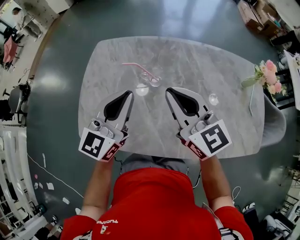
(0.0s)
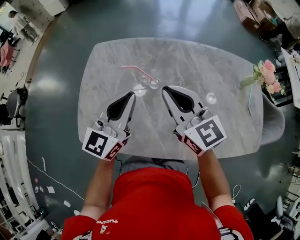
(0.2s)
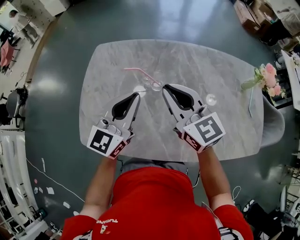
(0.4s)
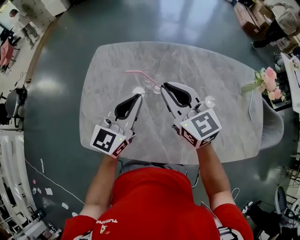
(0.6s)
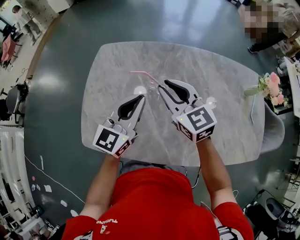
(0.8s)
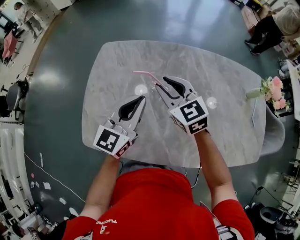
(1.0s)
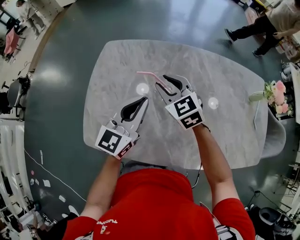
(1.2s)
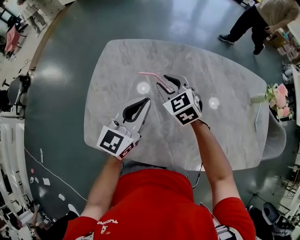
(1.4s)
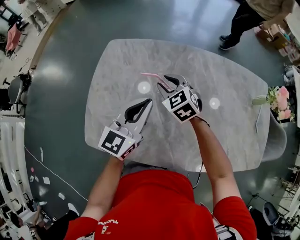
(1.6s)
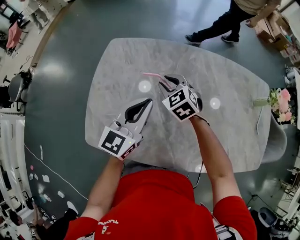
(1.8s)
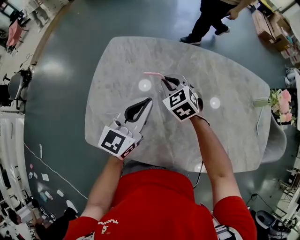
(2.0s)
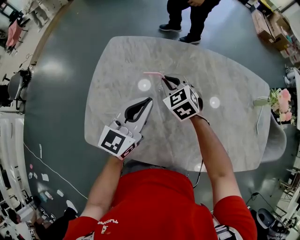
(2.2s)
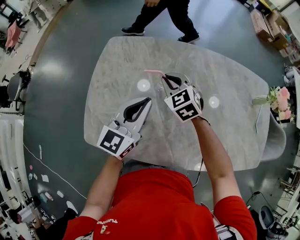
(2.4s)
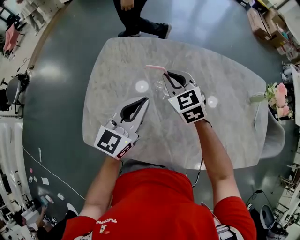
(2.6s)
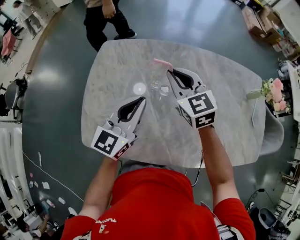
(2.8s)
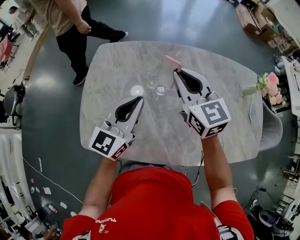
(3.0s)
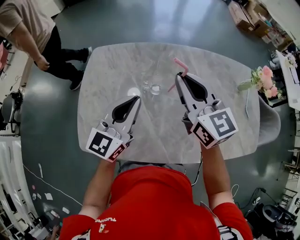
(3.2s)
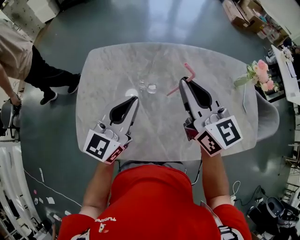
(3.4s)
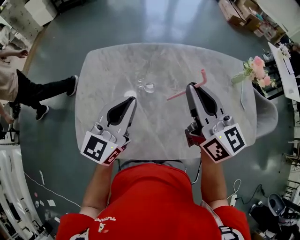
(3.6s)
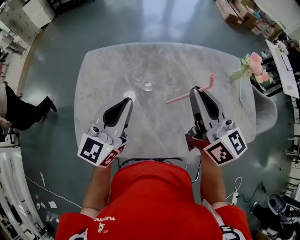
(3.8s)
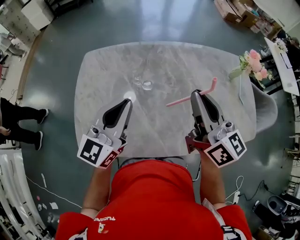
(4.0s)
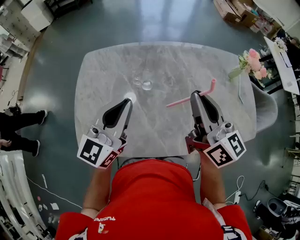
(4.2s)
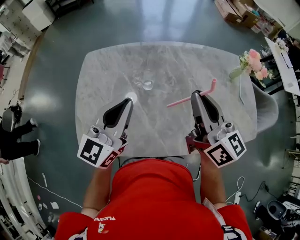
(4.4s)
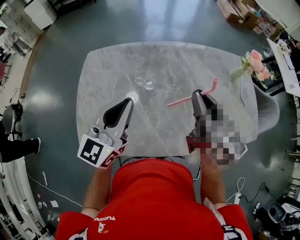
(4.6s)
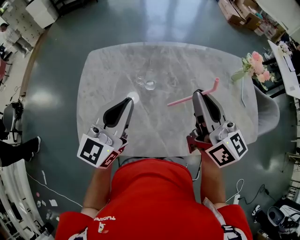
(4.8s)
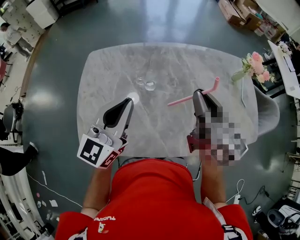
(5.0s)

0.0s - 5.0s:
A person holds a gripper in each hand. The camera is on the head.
0.0s - 1.6s: The left gripper moves downward and forward, about 10 cm. Meanwhile the right gripper goes approximately 25 cm downward, forward and to the left, tips its fingers downward by approximately 30 degrees, and opens up.
1.6s - 3.4s: The left gripper is displaced upward by about 5 cm; the right gripper shifts some 25 cm upward, to the right and backward, tilts its fingers some 40 degrees upward, and closes.
3.4s - 5.0s: The right gripper is displaced backward and to the right by some 10 cm.

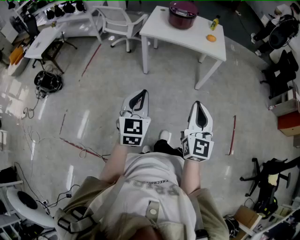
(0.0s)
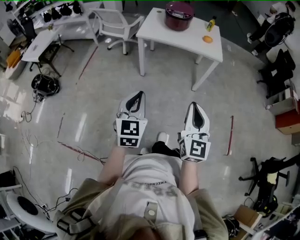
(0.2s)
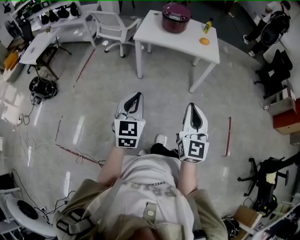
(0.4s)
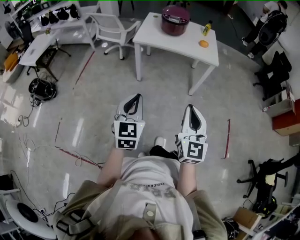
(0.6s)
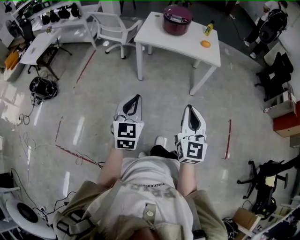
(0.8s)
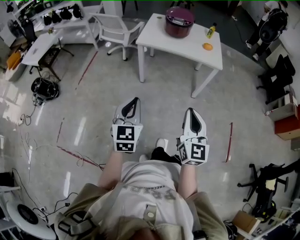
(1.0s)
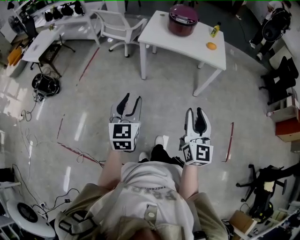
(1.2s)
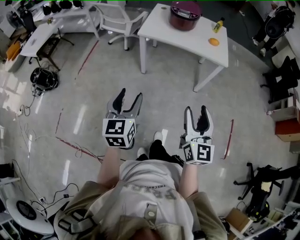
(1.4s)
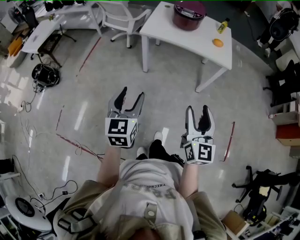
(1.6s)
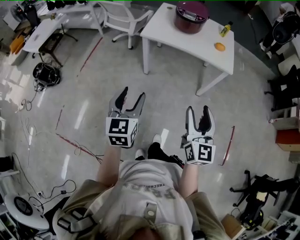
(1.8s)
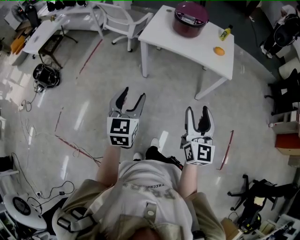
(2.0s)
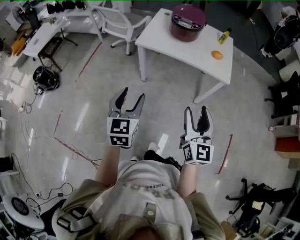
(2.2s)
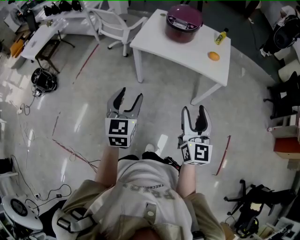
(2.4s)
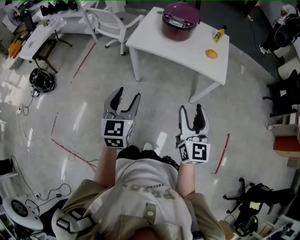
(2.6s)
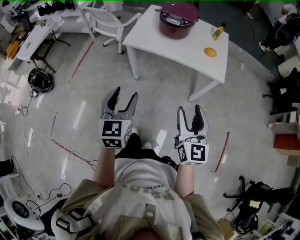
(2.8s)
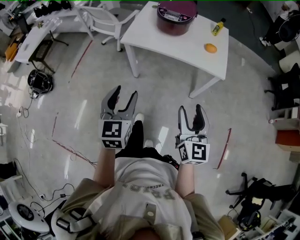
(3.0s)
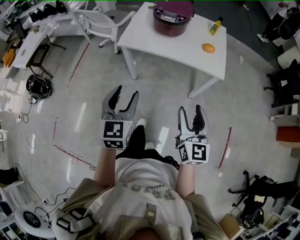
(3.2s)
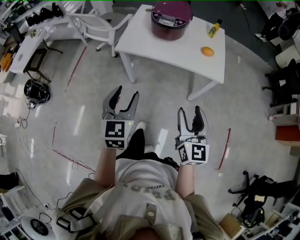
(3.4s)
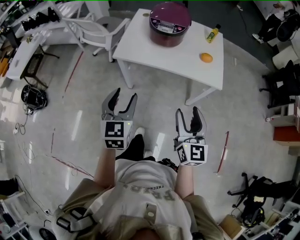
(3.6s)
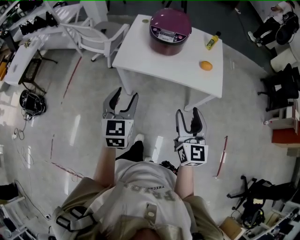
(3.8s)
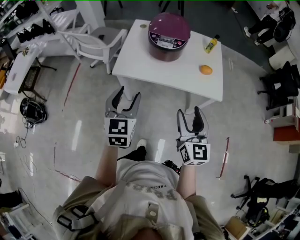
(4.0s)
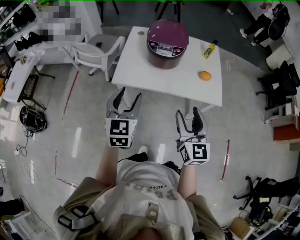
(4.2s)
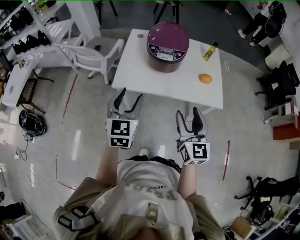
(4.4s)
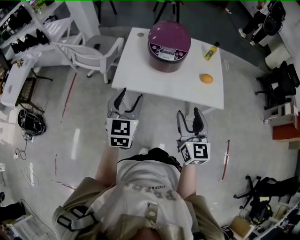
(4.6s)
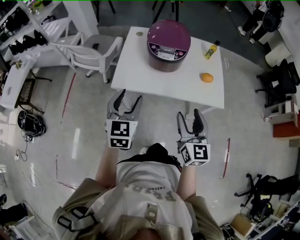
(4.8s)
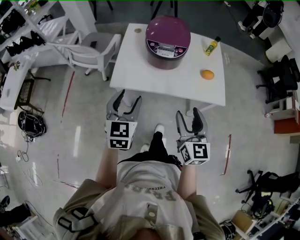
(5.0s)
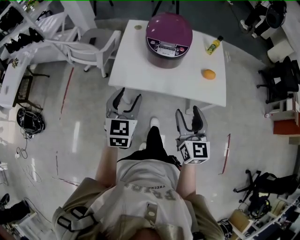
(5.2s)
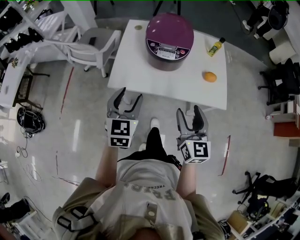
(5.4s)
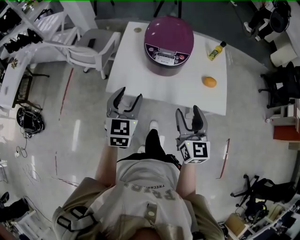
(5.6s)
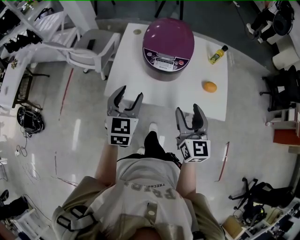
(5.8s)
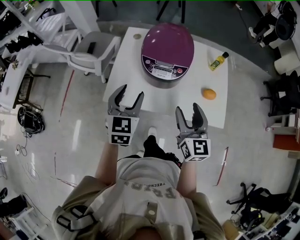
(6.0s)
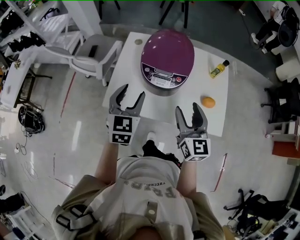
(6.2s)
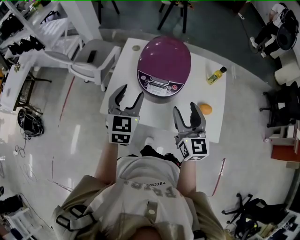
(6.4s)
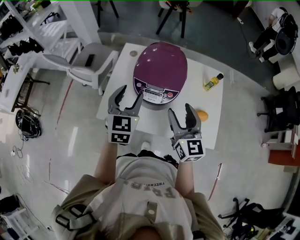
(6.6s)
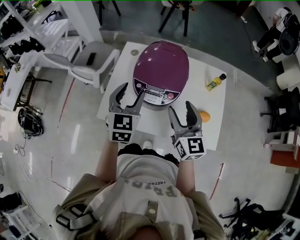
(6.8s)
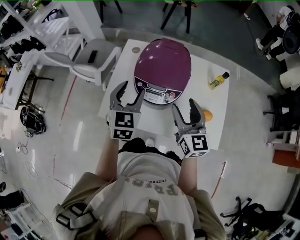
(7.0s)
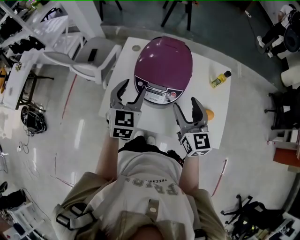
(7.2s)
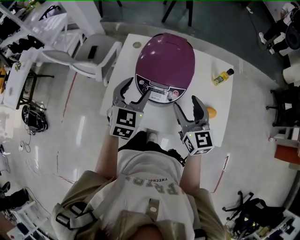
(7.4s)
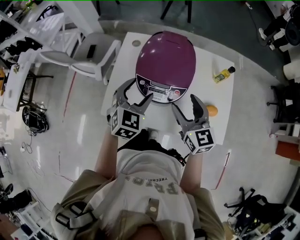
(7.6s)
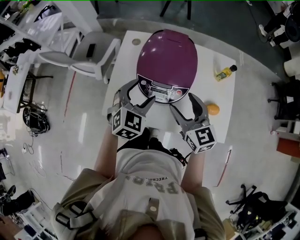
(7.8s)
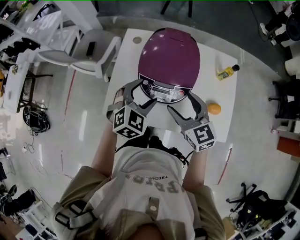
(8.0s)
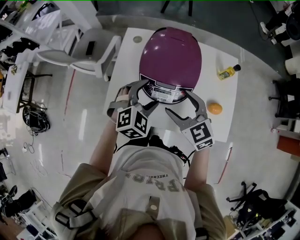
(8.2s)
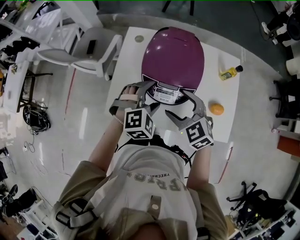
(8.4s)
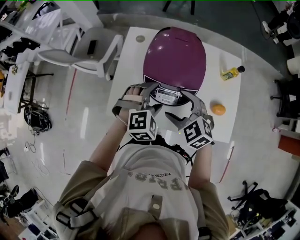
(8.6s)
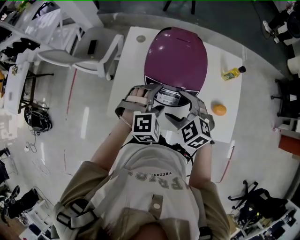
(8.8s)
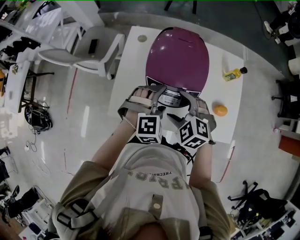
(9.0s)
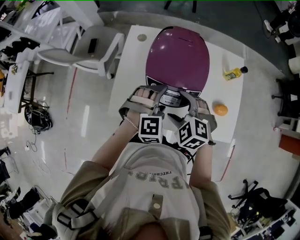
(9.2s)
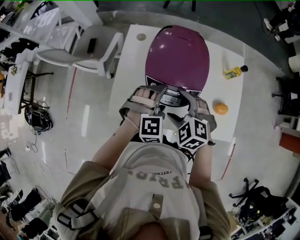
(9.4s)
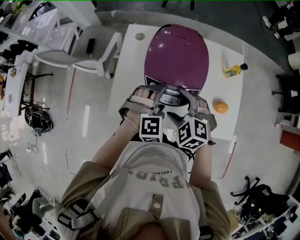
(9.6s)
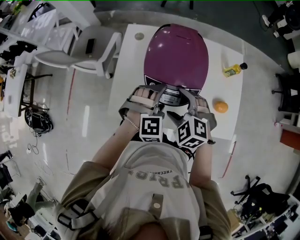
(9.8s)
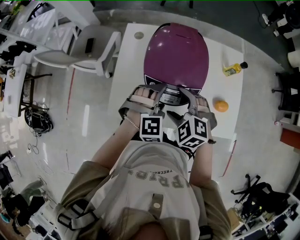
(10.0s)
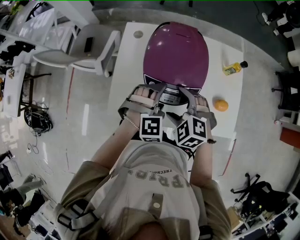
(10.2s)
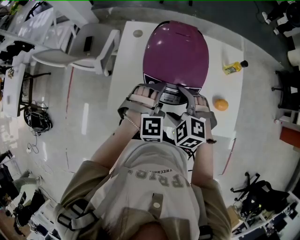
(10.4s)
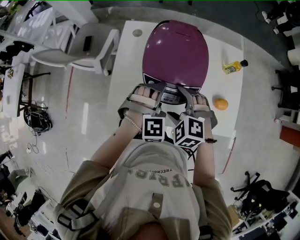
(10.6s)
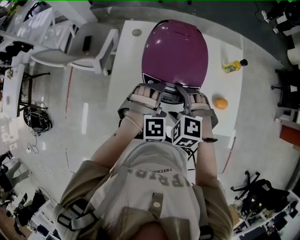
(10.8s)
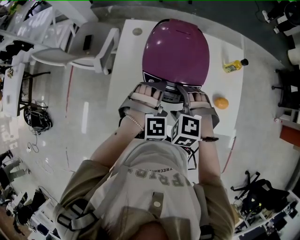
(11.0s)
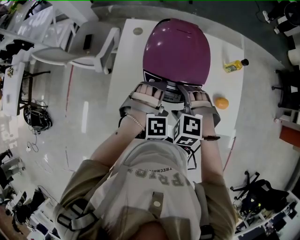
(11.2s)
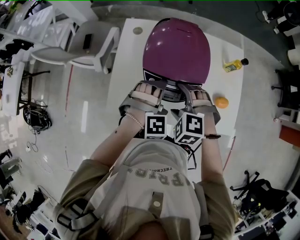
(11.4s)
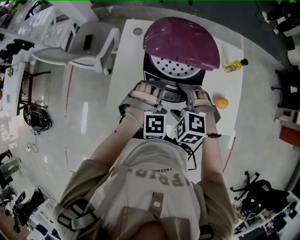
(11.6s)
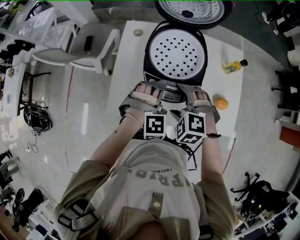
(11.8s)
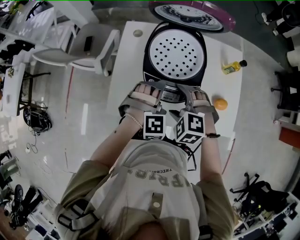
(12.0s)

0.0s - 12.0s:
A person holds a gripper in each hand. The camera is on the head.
0.0s - 1.6s: The grippers both shift forward by approximately 10 cm. The left gripper opens its fingers, while the right gripper opens up.
1.6s - 3.0s: The grippers both shift forward and to the right by roughly 20 cm.
3.0s - 4.4s: The two grippers go approximately 25 cm forward.
4.4s - 6.0s: Both grippers move forward, some 20 cm.
6.0s - 7.6s: The right gripper shifts some 15 cm forward; the left gripper goes approximately 15 cm forward and to the right.
7.6s - 9.0s: The right gripper goes approximately 10 cm downward and to the left, and points its fingers some 40 degrees further downward, while the left gripper is displaced downward by about 5 cm, and twists about 40 degrees clockwise, seen from behind.
9.0s - 10.4s: There are only small adjustments of the grippers.
10.4s - 12.0s: The grippers make only small movements.

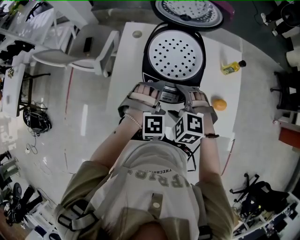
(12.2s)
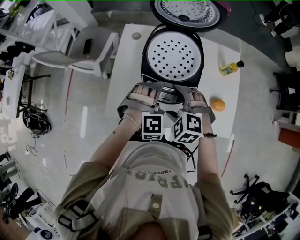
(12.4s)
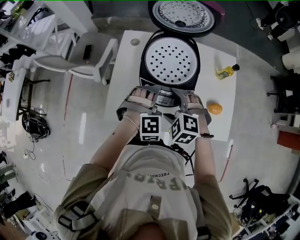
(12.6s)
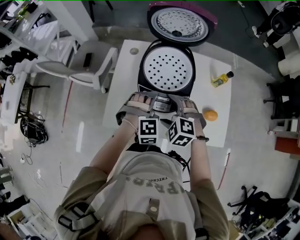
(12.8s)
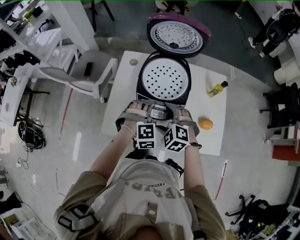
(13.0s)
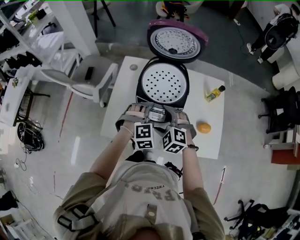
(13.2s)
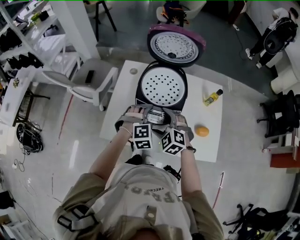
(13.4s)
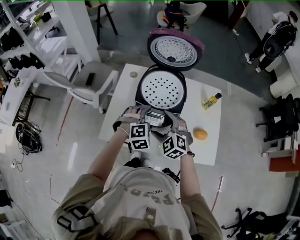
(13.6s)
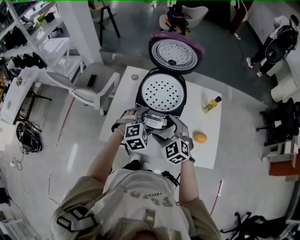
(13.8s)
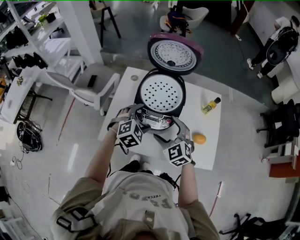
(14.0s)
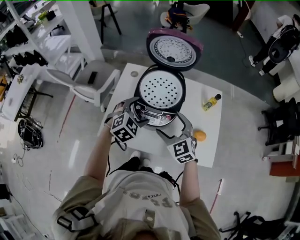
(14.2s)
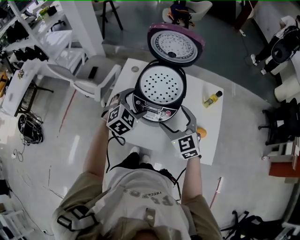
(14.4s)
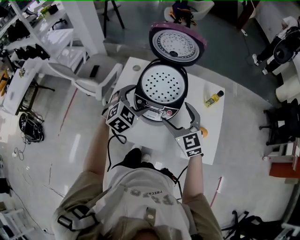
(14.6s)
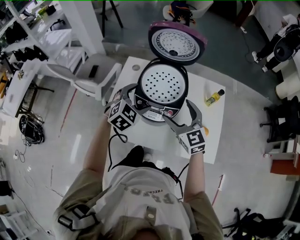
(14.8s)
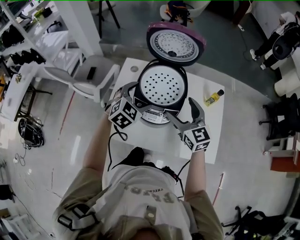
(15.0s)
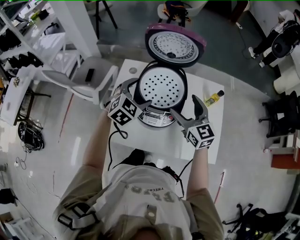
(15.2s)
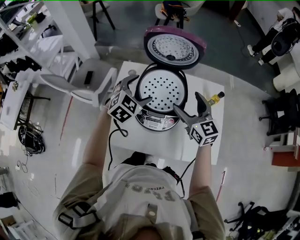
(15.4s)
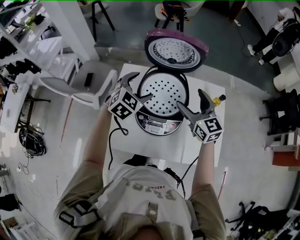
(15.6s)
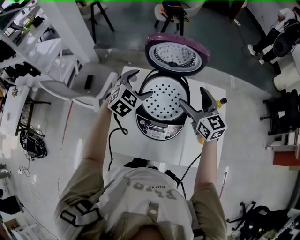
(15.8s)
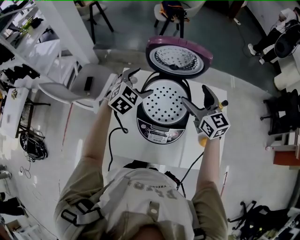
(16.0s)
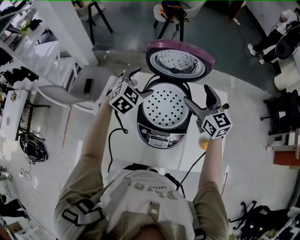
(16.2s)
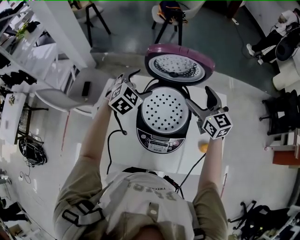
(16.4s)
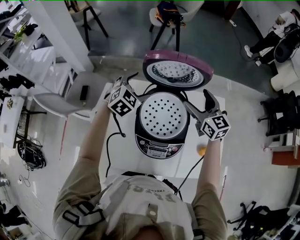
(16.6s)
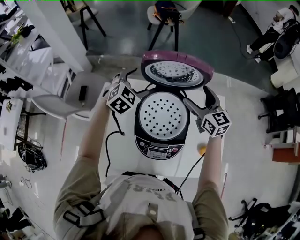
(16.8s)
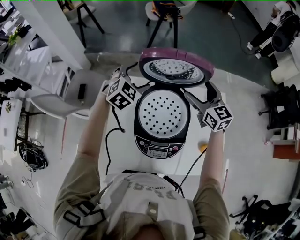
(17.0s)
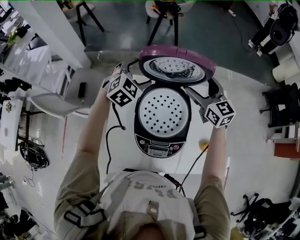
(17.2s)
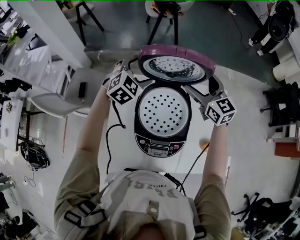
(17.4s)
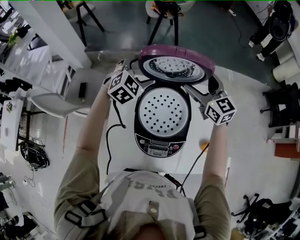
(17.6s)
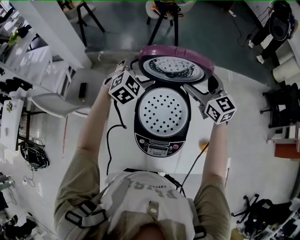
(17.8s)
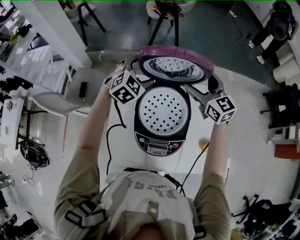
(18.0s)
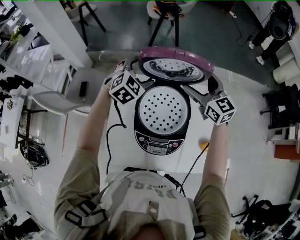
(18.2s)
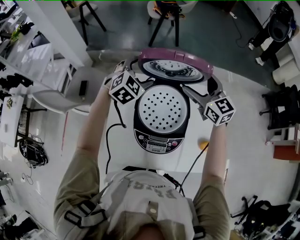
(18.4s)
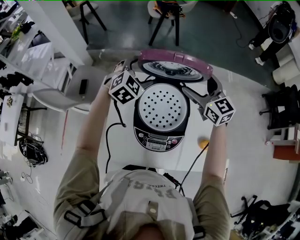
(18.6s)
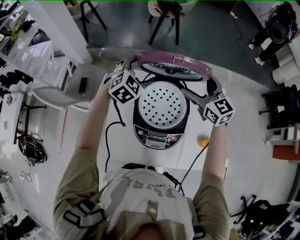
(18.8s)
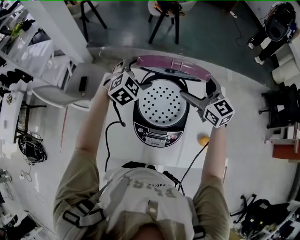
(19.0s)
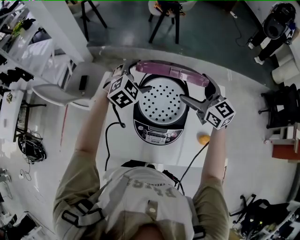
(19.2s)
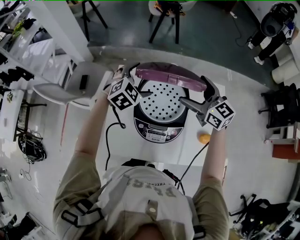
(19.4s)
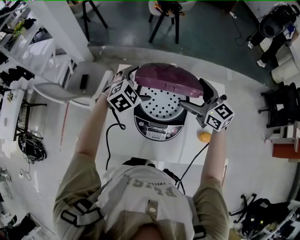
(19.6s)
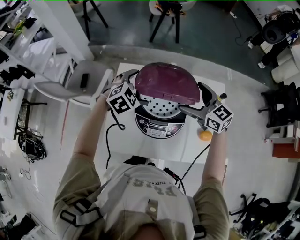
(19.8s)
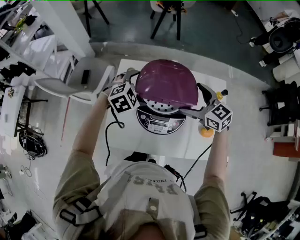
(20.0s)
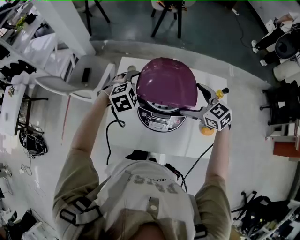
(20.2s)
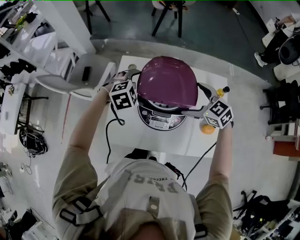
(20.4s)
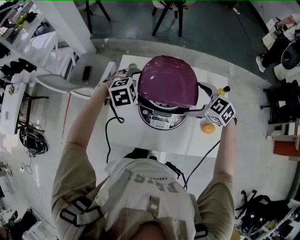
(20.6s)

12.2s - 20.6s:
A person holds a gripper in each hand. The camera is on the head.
12.2s - 13.6s: The right gripper rotates about 20 degrees.
13.6s - 15.0s: The right gripper moves upward, to the right and forward, roughly 15 cm, and changes its angle by approximately 40 degrees. The left gripper goes about 10 cm upward and forward, and swivels some 30 degrees.
15.0s - 16.4s: Both grippers travel together forward, about 20 cm.
16.4s - 17.8s: Both grippers move forward, some 5 cm.
17.8s - 19.2s: The grippers both shift backward by about 10 cm.
19.2s - 20.6s: The two grippers go some 15 cm backward and downward. The right gripper tips its fingers downward by roughly 30 degrees. Meanwhile the left gripper turns by about 30 degrees.
